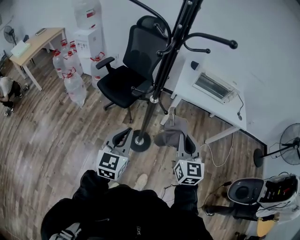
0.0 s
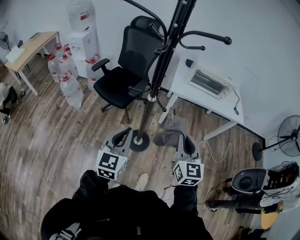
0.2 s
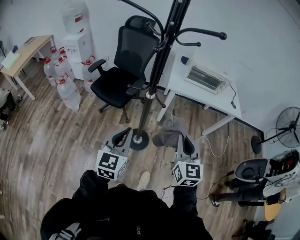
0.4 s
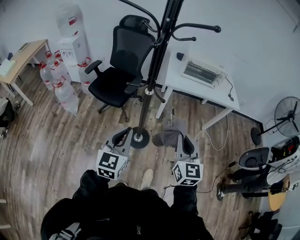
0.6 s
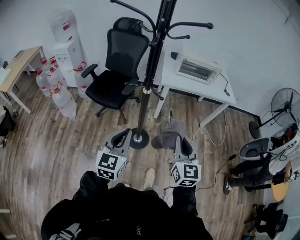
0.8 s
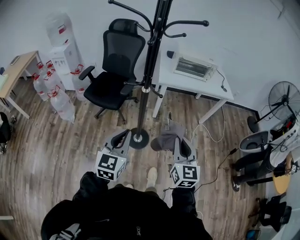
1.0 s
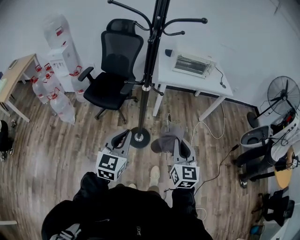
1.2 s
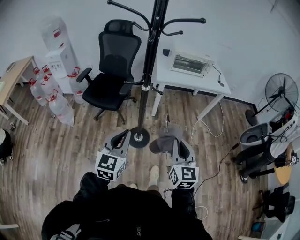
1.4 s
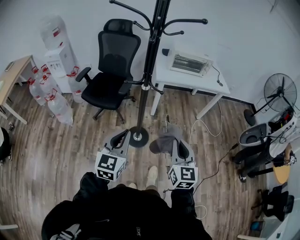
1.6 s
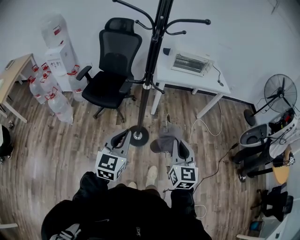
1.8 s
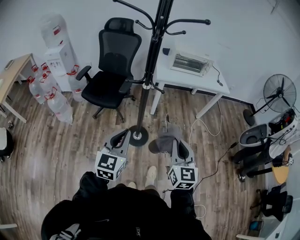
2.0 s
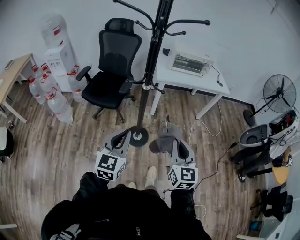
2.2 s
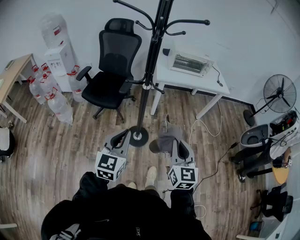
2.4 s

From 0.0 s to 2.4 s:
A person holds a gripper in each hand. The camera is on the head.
From 0.0 s to 1.2 s: The right gripper is displaced backward by approximately 20 cm. Meanwhile the left gripper is displaced backward by roughly 10 cm.
From 1.2 s to 2.4 s: The grippers move only a little.

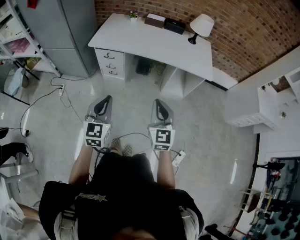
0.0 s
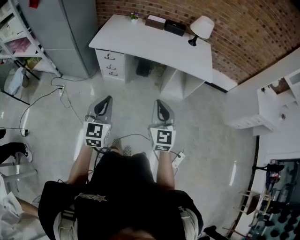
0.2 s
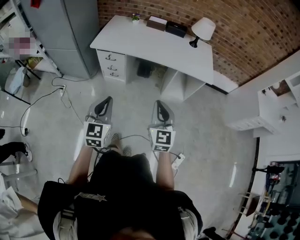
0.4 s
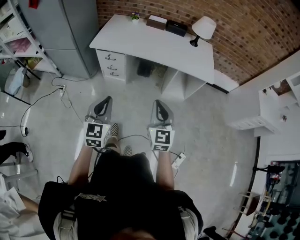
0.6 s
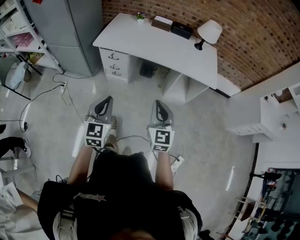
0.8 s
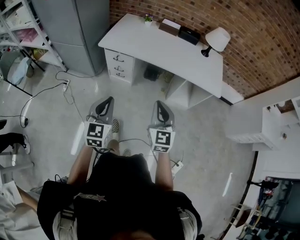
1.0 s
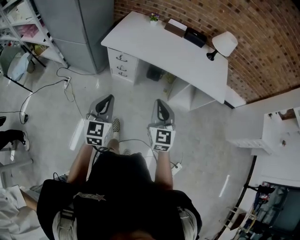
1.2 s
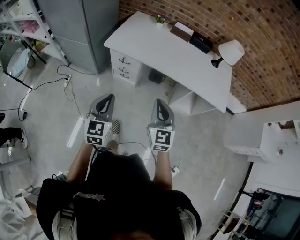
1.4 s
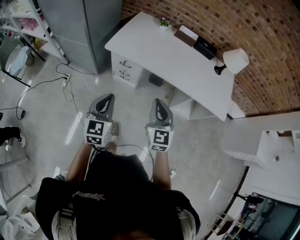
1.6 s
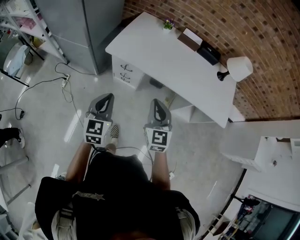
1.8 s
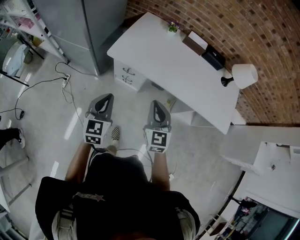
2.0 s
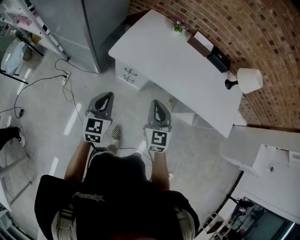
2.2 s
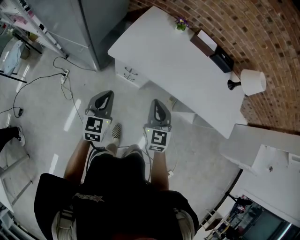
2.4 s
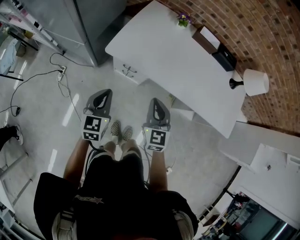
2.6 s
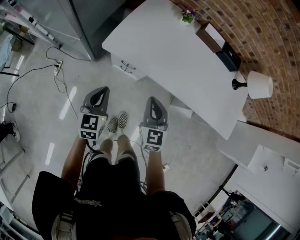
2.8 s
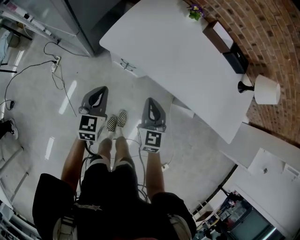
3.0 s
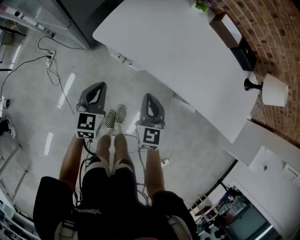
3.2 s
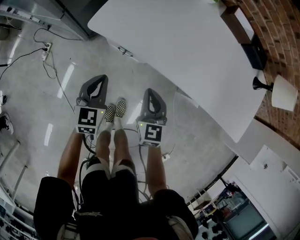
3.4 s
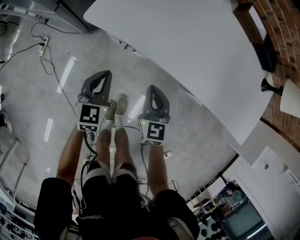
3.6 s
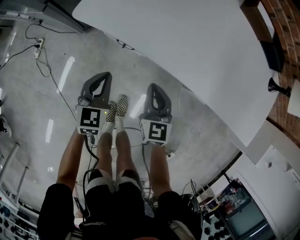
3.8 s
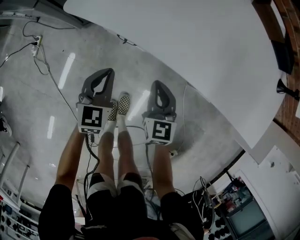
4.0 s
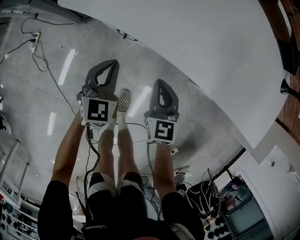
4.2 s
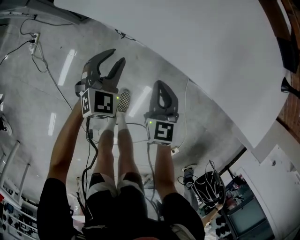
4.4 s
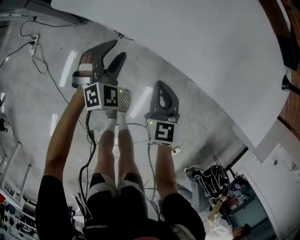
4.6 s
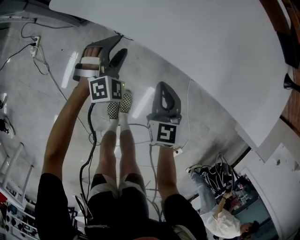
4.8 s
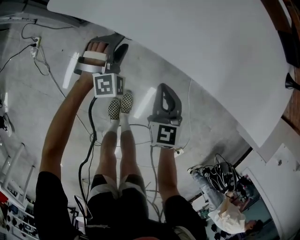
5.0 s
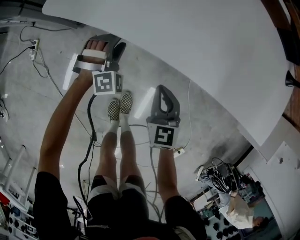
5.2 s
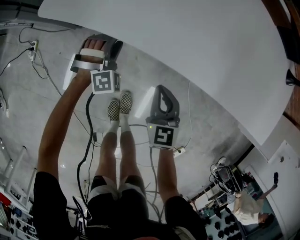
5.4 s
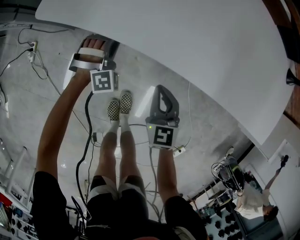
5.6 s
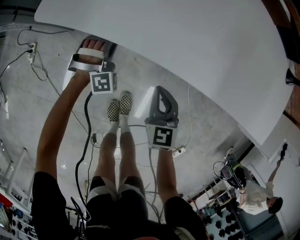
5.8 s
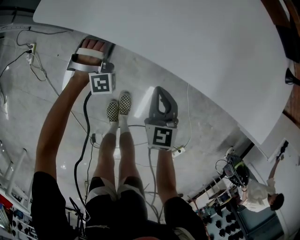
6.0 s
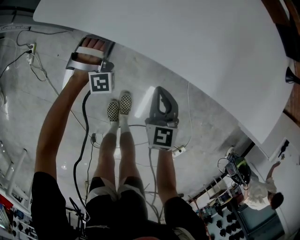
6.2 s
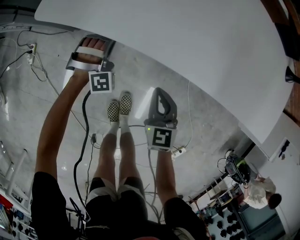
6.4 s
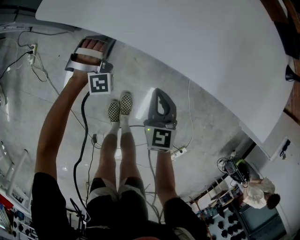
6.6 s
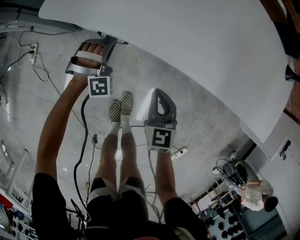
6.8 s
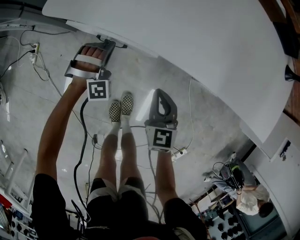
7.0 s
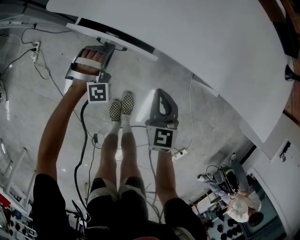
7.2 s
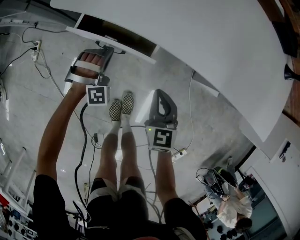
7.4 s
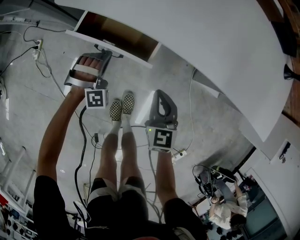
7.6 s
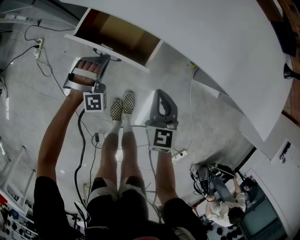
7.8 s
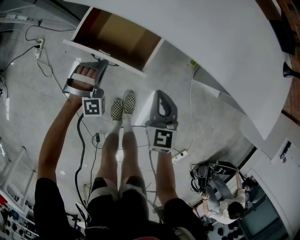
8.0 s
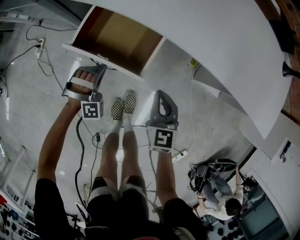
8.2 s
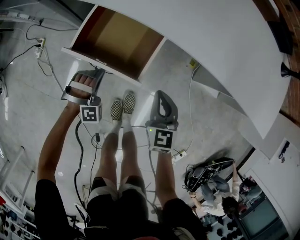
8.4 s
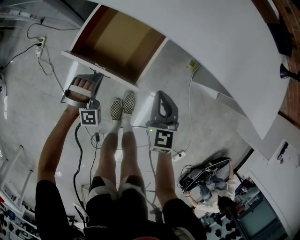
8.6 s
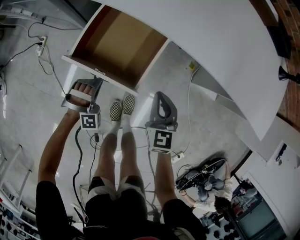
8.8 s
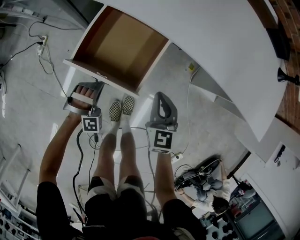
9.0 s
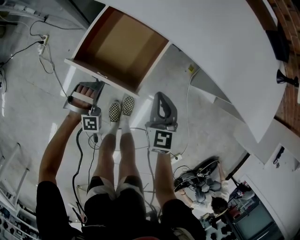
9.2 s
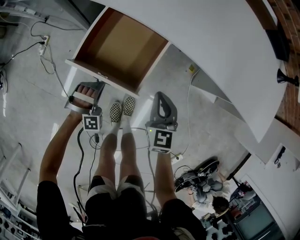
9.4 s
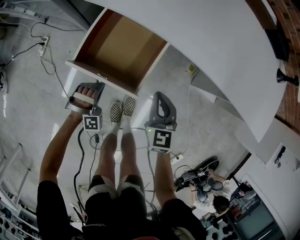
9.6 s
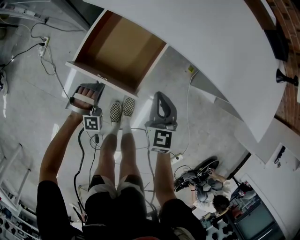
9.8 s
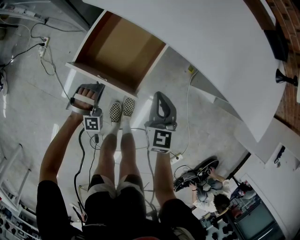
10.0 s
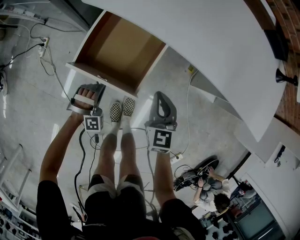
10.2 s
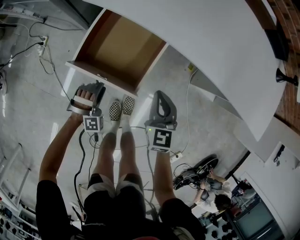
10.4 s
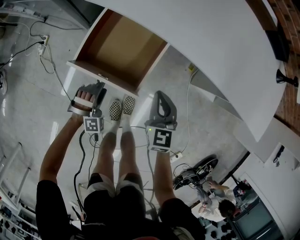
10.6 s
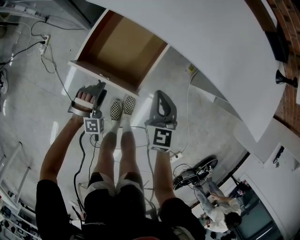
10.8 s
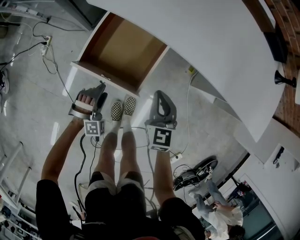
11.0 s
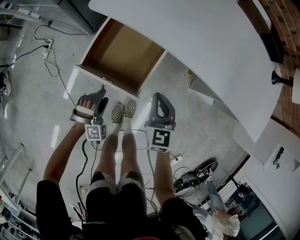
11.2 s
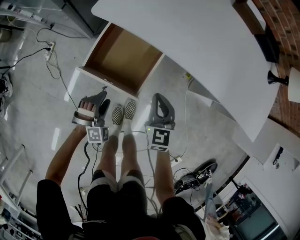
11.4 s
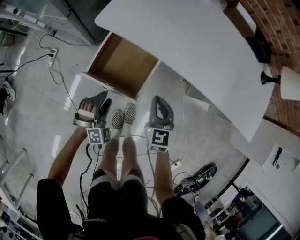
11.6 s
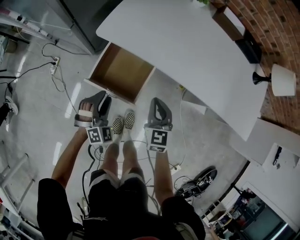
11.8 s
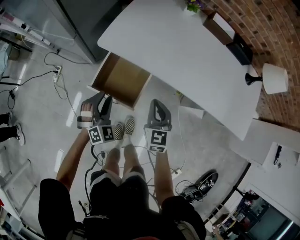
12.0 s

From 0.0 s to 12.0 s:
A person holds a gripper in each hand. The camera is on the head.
From 0.0 s to 1.6 s: The two grippers go roughly 25 cm forward and to the left.
From 1.6 s to 3.0 s: The two grippers go roughly 30 cm forward and downward.
From 3.0 s to 4.4 s: The grippers both shift downward by approximately 25 cm. The left gripper changes its angle by about 30 degrees, and opens.
From 4.4 s to 6.0 s: The left gripper is displaced forward by some 10 cm, rotates around the line of its fingers by approximately 60 degrees, clockwise from behind, and closes.
From 6.0 s to 7.6 s: The left gripper is displaced backward by roughly 10 cm, while the right gripper is displaced backward by some 5 cm.
From 7.6 s to 9.0 s: The left gripper shifts approximately 15 cm backward.
From 9.0 s to 10.4 s: The left gripper opens up.
From 10.4 s to 12.0 s: The right gripper moves upward, approximately 15 cm; the left gripper moves upward, some 25 cm, and swivels some 40 degrees.

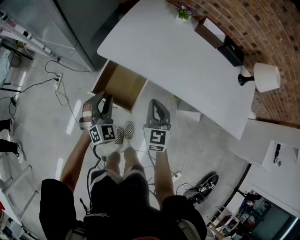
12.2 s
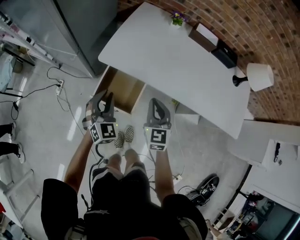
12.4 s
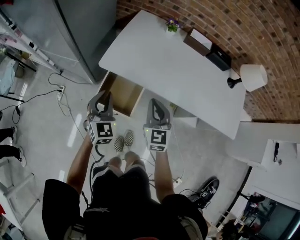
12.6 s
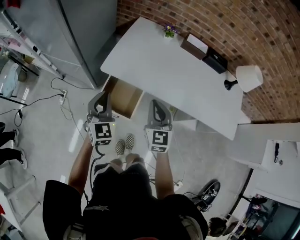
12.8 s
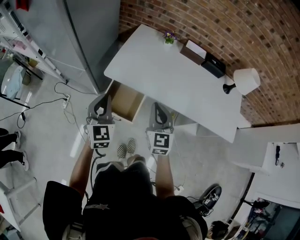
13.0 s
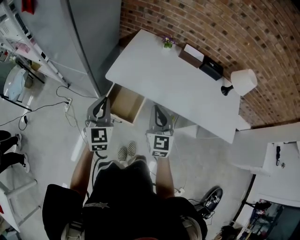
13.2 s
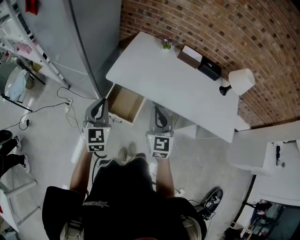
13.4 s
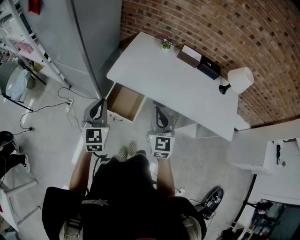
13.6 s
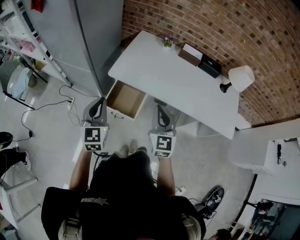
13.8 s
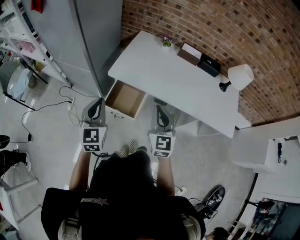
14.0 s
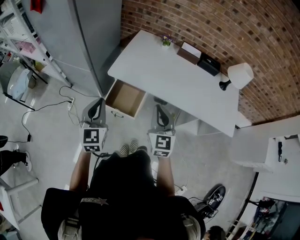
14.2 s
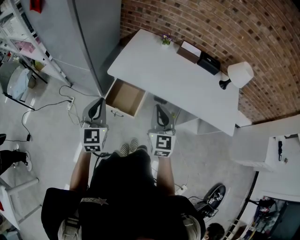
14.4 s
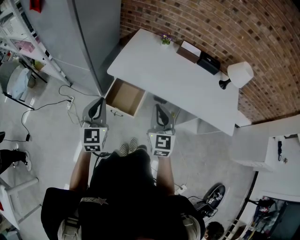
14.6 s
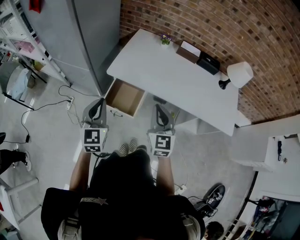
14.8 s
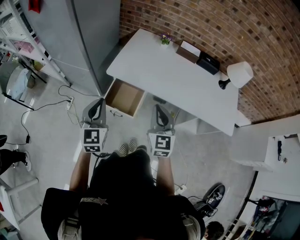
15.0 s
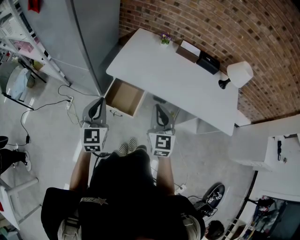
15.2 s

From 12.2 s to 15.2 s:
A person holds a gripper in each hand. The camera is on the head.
From 12.2 s to 13.8 s: Both grippers move upward, some 25 cm. The left gripper swivels approximately 30 degrees, and closes.
From 13.8 s to 15.2 s: The grippers stay close to where they were, moving slightly.

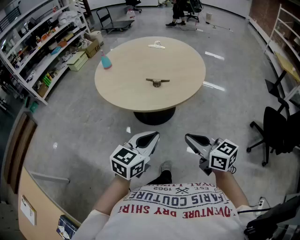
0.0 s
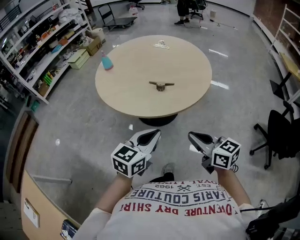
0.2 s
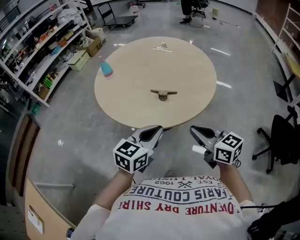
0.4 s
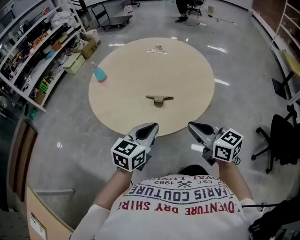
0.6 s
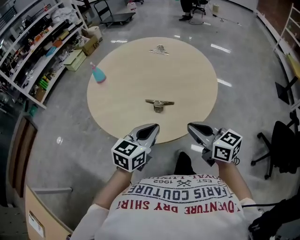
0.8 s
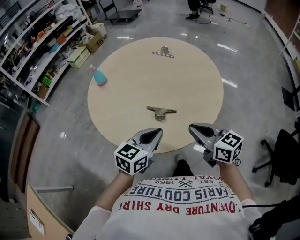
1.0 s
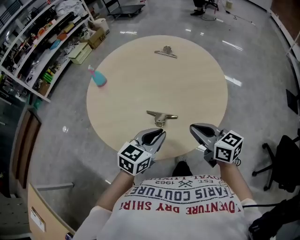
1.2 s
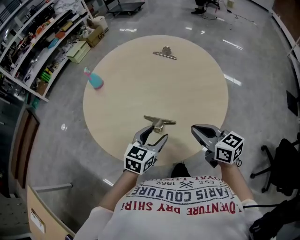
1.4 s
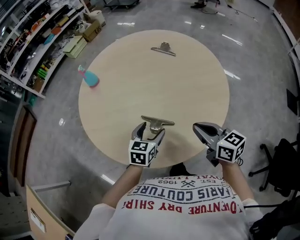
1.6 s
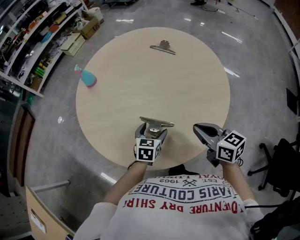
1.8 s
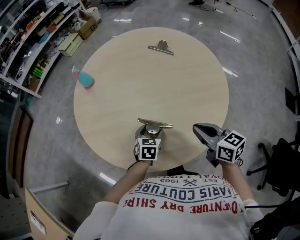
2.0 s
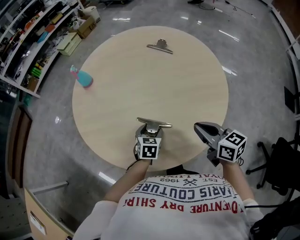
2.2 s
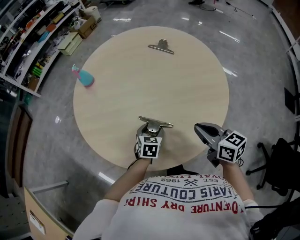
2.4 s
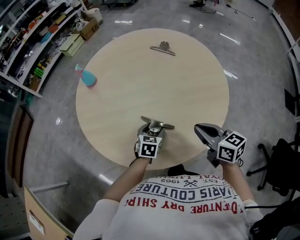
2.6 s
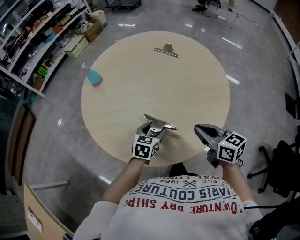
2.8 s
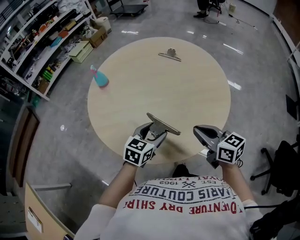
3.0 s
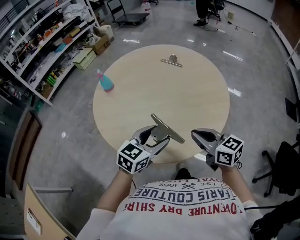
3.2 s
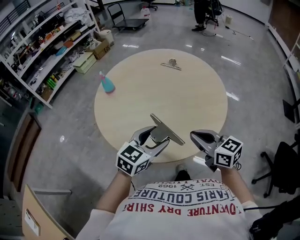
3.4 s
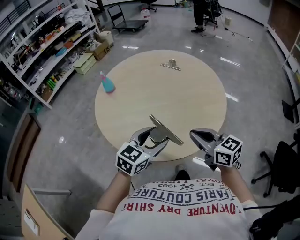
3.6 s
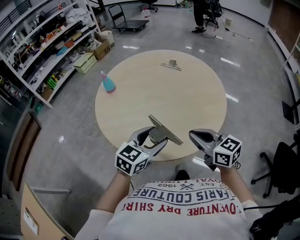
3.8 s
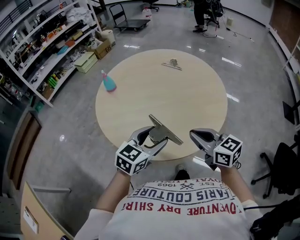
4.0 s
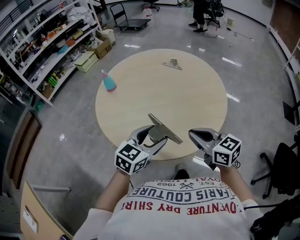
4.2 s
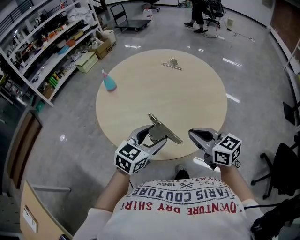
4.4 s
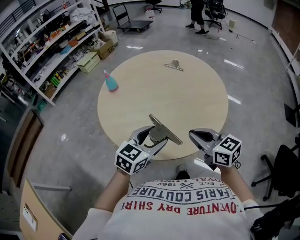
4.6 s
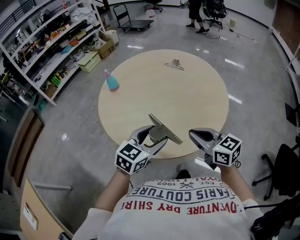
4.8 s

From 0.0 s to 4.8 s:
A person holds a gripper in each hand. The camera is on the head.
From 0.0 s to 1.6 s: The two grippers travel together, forward, roughly 50 cm. The left gripper rotates some 30 degrees, and opens.
From 1.6 s to 3.2 s: The left gripper shifts some 15 cm upward and backward, and rotates some 20 degrees. Meanwhile the right gripper shifts some 10 cm to the left and backward.
From 3.2 s to 4.8 s: The left gripper ends up about 5 cm from where it was; the right gripper shifts by some 5 cm.

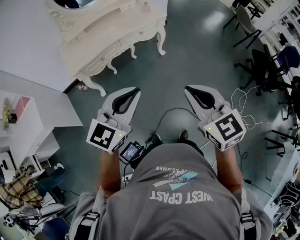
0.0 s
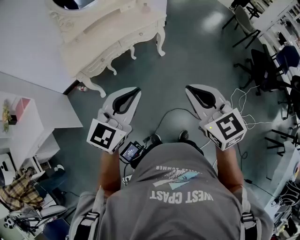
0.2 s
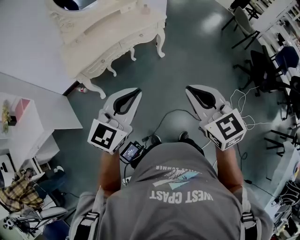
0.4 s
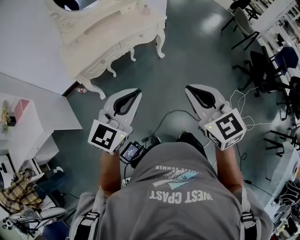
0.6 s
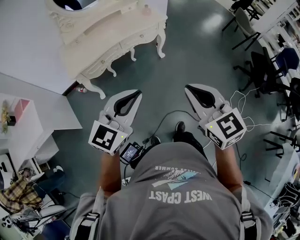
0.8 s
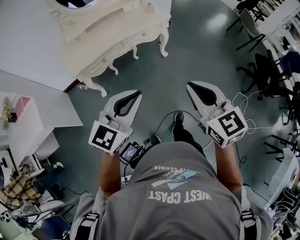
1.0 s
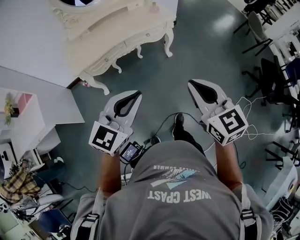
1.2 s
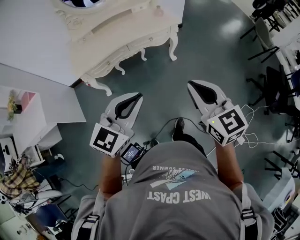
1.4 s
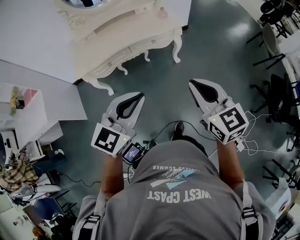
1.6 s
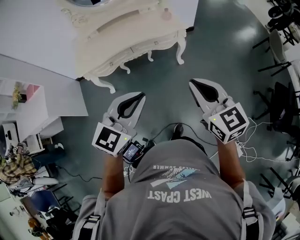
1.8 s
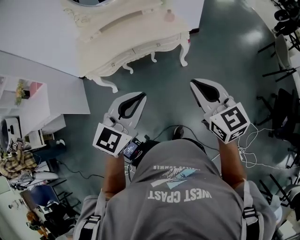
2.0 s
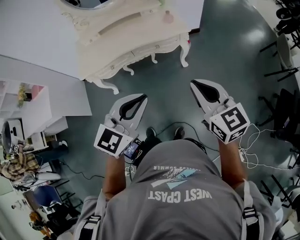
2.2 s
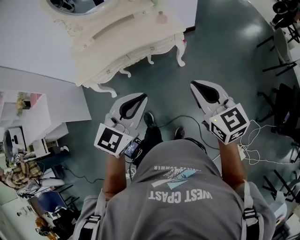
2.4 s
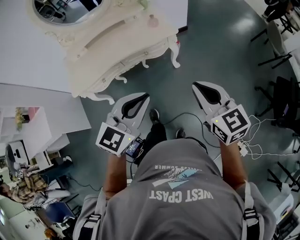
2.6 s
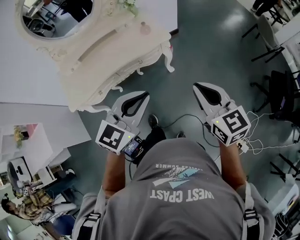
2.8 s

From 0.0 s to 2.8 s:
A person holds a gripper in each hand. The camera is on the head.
From 0.0 s to 1.4 s: The right gripper is displaced forward by roughly 15 cm. Meanwhile the left gripper shifts approximately 10 cm forward.
From 1.4 s to 2.8 s: The two grippers go about 25 cm forward and to the right.
